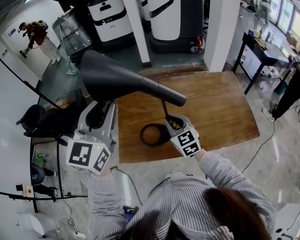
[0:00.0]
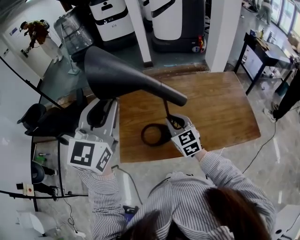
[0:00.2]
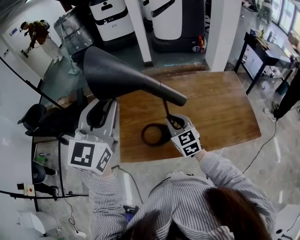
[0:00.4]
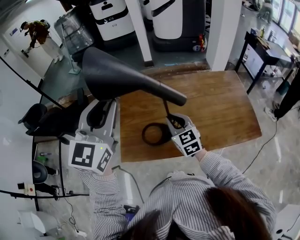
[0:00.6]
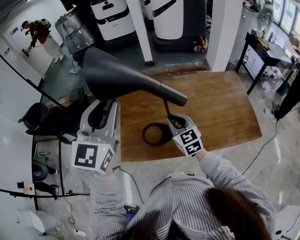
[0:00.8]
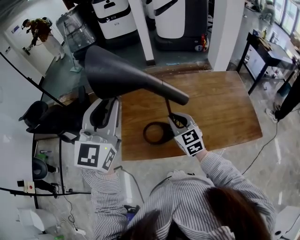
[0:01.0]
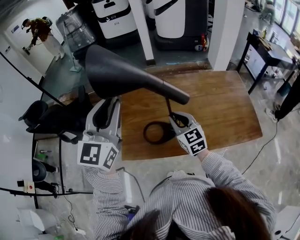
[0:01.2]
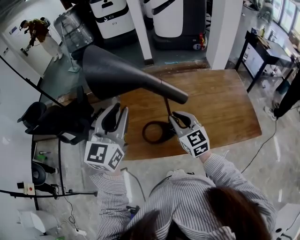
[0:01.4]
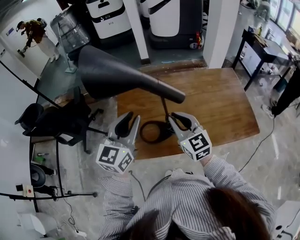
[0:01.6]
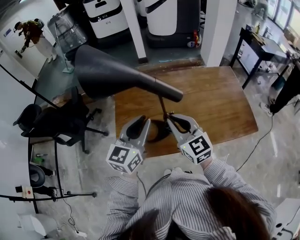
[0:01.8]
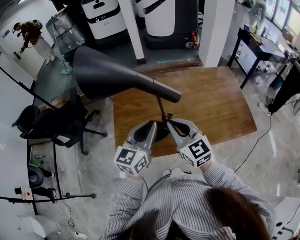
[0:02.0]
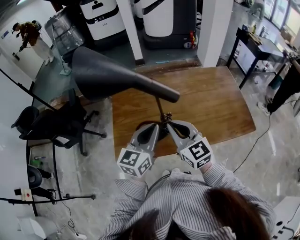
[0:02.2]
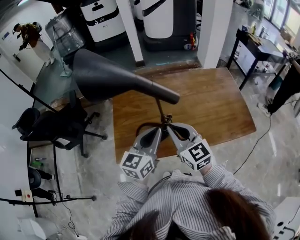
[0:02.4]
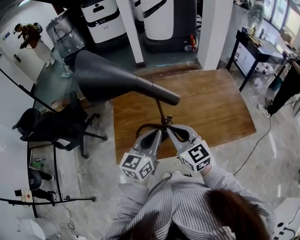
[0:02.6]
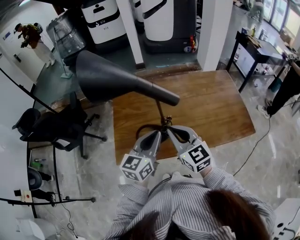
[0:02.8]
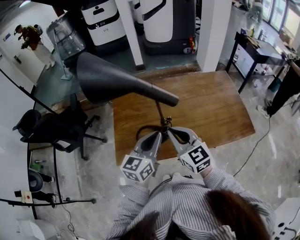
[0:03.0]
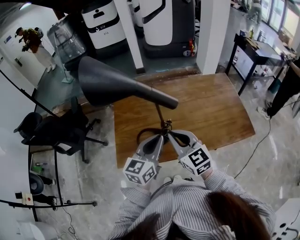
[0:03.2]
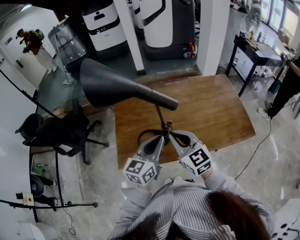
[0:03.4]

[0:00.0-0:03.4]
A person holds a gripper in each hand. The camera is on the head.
0:00.0 to 0:01.6: The left gripper is displaced downward by approximately 15 cm. Meanwhile the right gripper shifts by about 5 cm.
0:01.6 to 0:03.4: The left gripper shifts some 10 cm to the right and downward, and closes up, while the right gripper heads backward, covering roughly 5 cm.

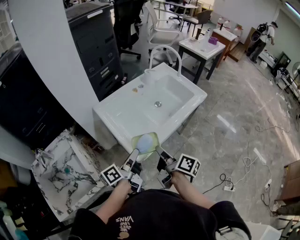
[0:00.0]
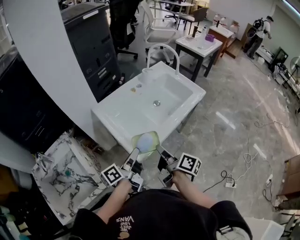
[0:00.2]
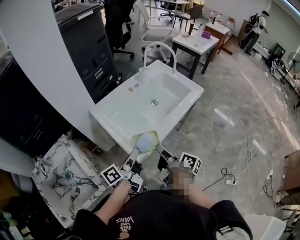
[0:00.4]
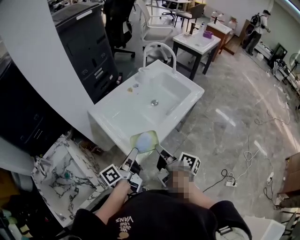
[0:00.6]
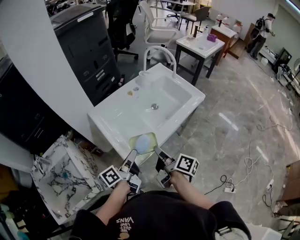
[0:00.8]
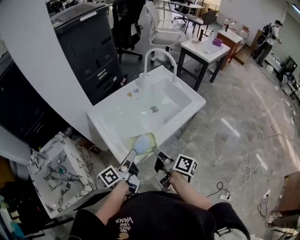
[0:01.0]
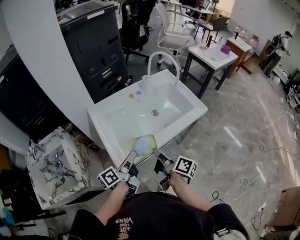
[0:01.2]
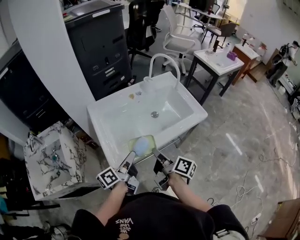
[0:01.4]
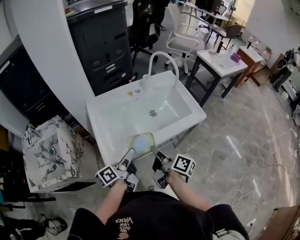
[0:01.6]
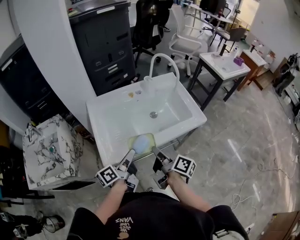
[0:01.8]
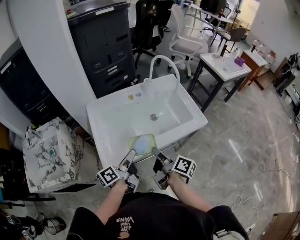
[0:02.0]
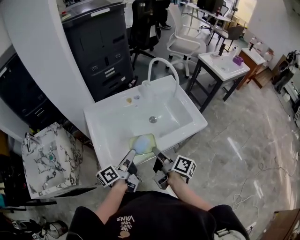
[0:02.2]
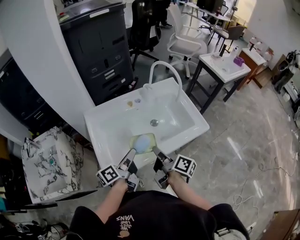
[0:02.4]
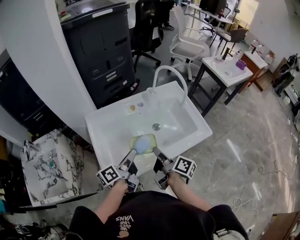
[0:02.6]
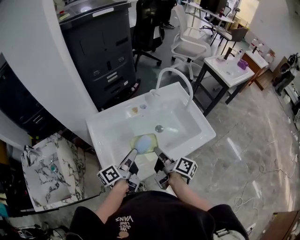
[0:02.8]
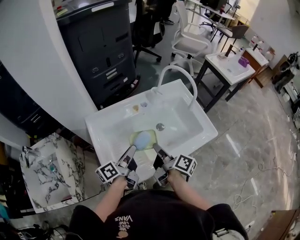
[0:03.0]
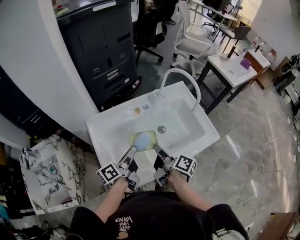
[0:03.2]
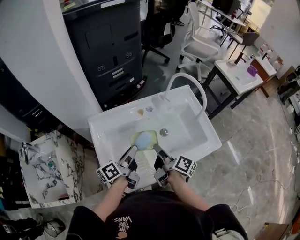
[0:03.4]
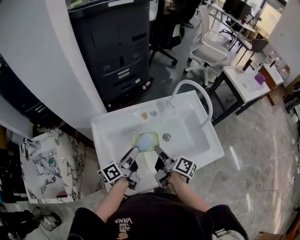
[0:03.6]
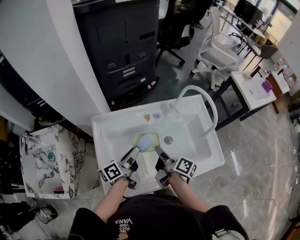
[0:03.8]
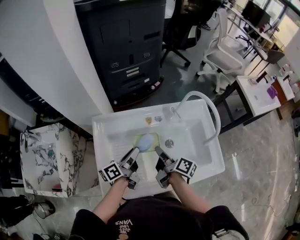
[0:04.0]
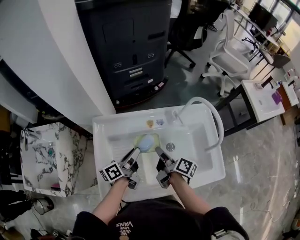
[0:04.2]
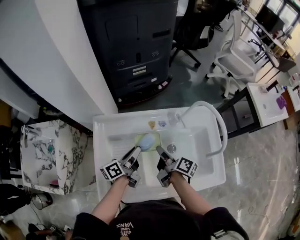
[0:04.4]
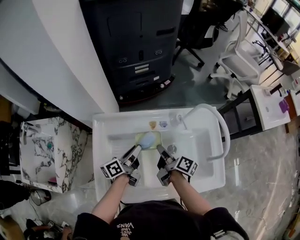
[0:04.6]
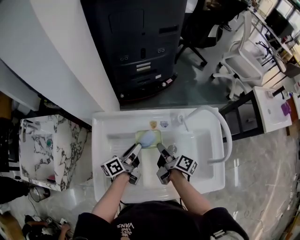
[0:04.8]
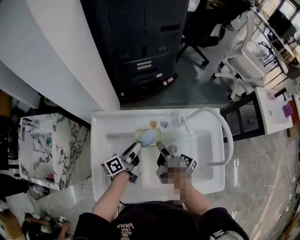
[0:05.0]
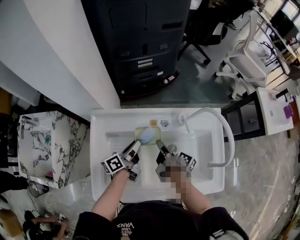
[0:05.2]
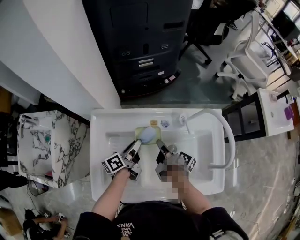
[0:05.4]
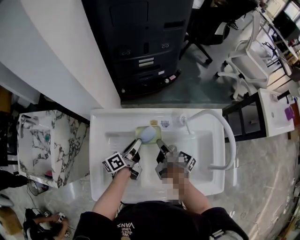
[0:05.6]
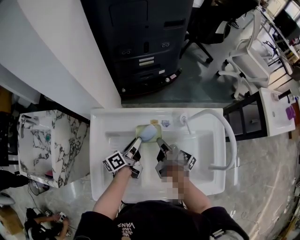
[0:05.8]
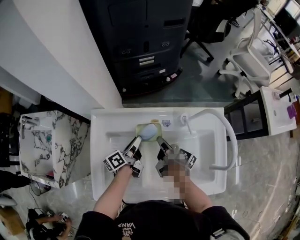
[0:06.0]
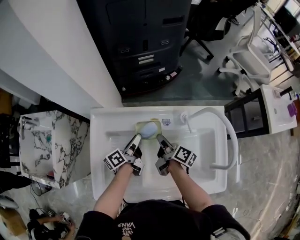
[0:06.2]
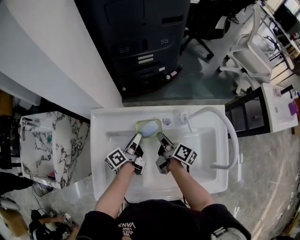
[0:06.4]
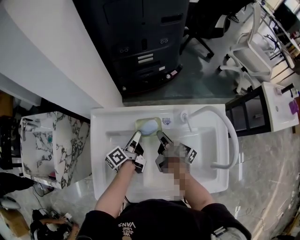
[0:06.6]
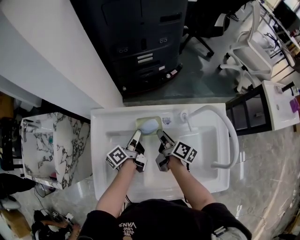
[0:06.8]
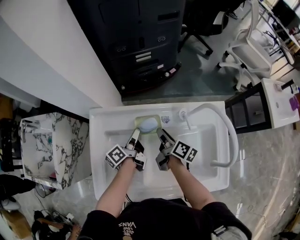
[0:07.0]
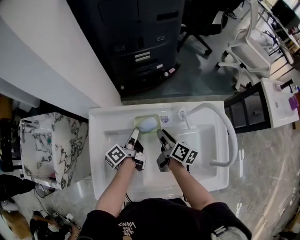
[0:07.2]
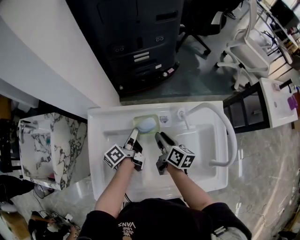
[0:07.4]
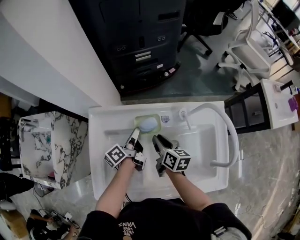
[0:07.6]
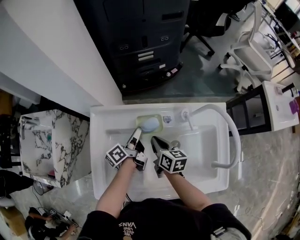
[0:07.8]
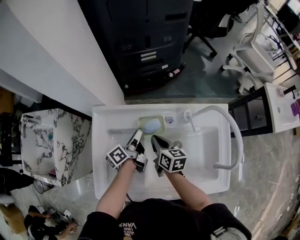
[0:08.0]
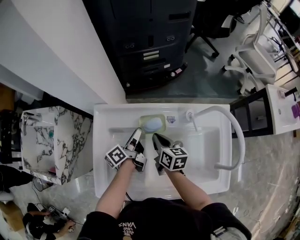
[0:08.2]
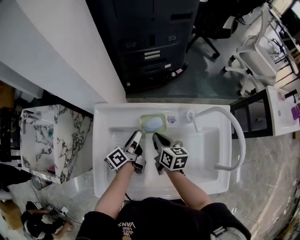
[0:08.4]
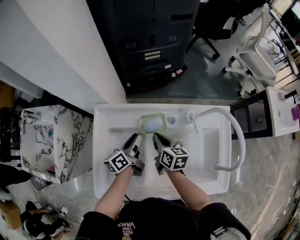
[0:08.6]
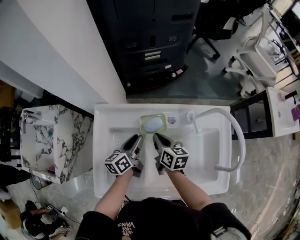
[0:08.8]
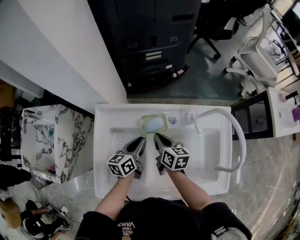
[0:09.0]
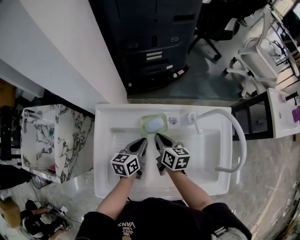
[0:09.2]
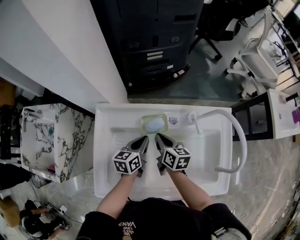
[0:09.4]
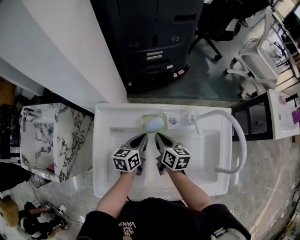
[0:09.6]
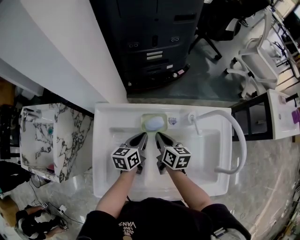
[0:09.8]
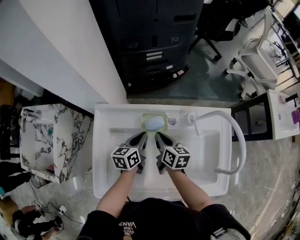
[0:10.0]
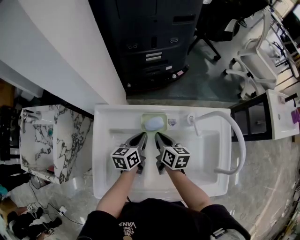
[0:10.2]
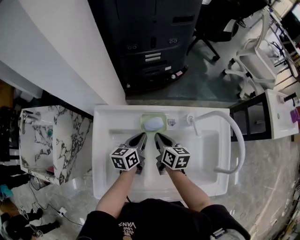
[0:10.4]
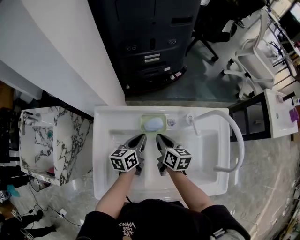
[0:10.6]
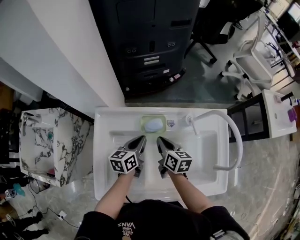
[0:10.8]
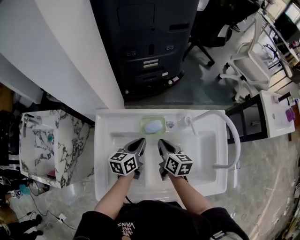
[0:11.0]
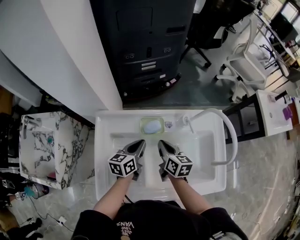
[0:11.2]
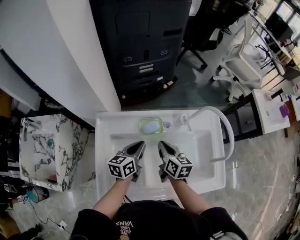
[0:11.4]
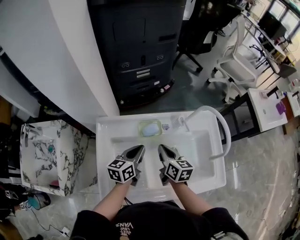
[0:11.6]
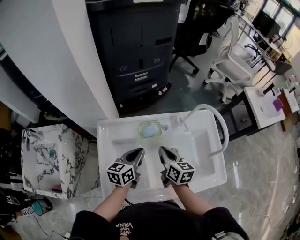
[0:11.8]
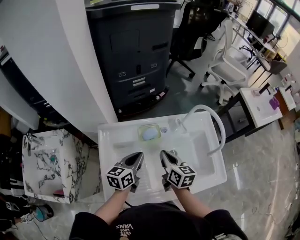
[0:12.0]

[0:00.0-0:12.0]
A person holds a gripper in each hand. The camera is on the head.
0:00.0 to 0:01.6: Both grippers move to the right and forward, some 15 cm.
0:01.6 to 0:03.0: The two grippers go approximately 15 cm forward.
0:03.0 to 0:04.4: Both grippers move forward and downward, about 15 cm. The right gripper rotates approximately 20 degrees.
0:04.4 to 0:06.0: The left gripper heads downward and forward, covering approximately 10 cm. Meanwhile the right gripper shifts about 10 cm forward and downward.
0:06.0 to 0:07.6: The right gripper swivels about 30 degrees.
0:07.6 to 0:09.0: The right gripper closes up. Meanwhile the left gripper turns by approximately 40 degrees.
0:09.0 to 0:10.4: The grippers stay close to where they were, moving slightly.
0:10.4 to 0:12.0: Both grippers move upward and backward, roughly 10 cm.

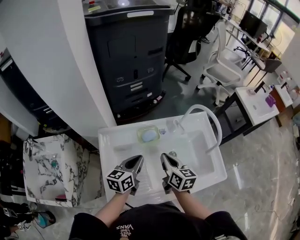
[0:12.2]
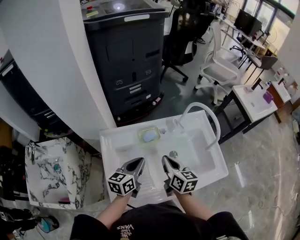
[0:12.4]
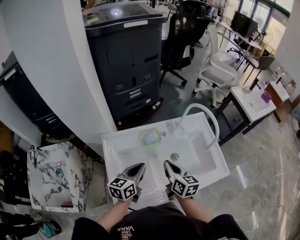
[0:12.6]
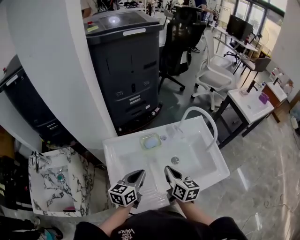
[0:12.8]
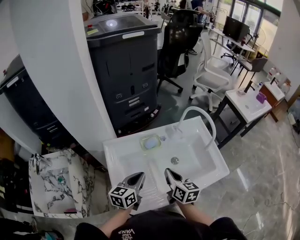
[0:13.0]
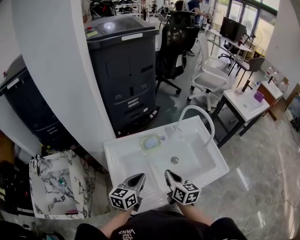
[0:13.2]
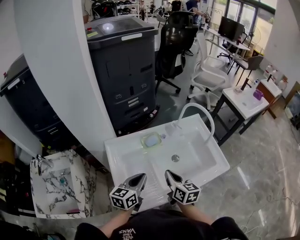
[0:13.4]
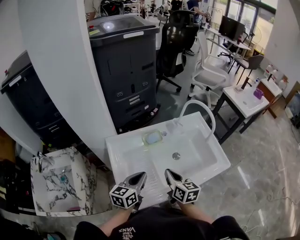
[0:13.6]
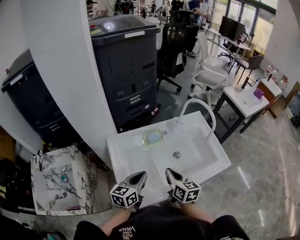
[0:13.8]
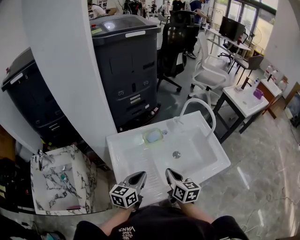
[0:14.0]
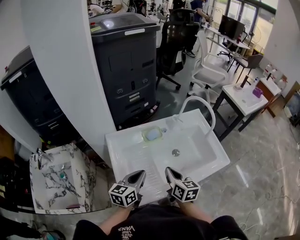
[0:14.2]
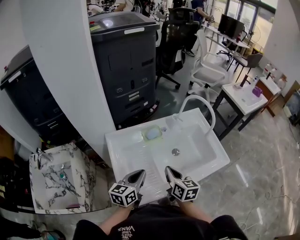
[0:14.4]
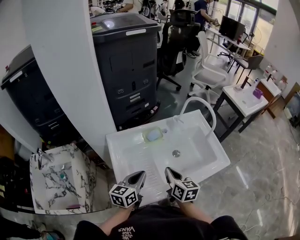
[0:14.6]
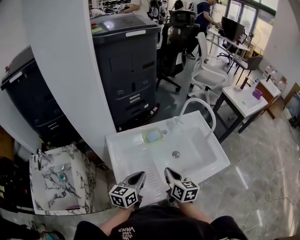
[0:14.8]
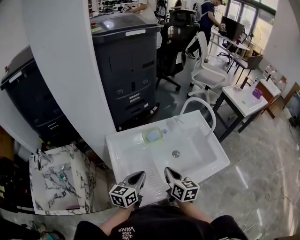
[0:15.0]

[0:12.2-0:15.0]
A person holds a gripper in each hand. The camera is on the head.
0:12.2 to 0:13.6: The grippers both shift backward by roughly 10 cm.
0:13.6 to 0:15.0: The grippers stay close to where they were, moving slightly.

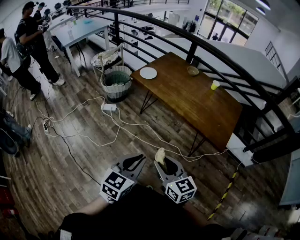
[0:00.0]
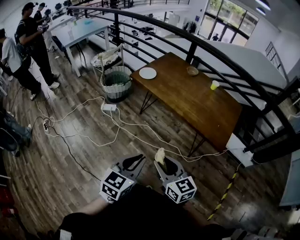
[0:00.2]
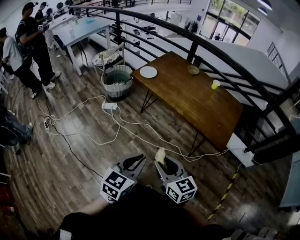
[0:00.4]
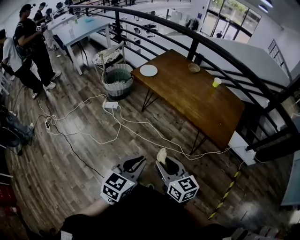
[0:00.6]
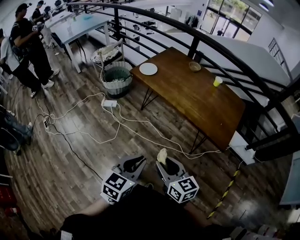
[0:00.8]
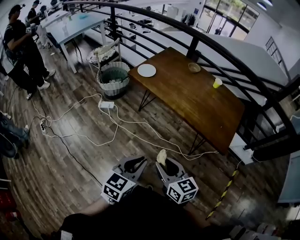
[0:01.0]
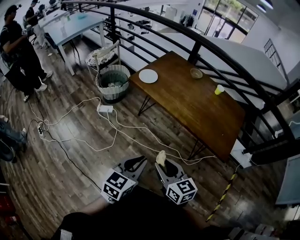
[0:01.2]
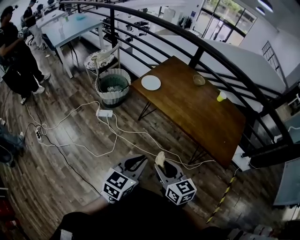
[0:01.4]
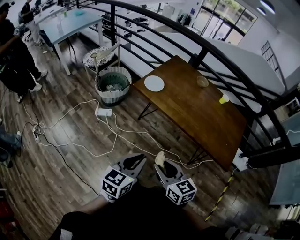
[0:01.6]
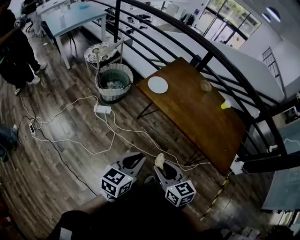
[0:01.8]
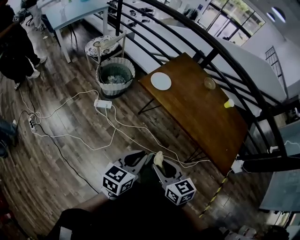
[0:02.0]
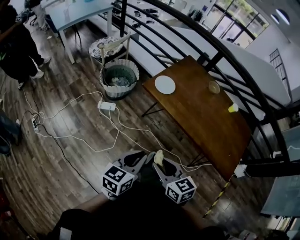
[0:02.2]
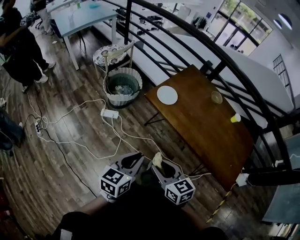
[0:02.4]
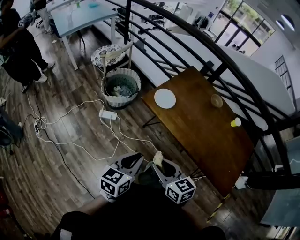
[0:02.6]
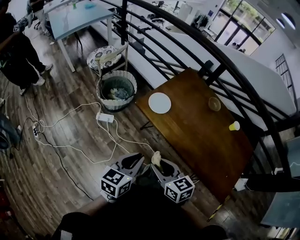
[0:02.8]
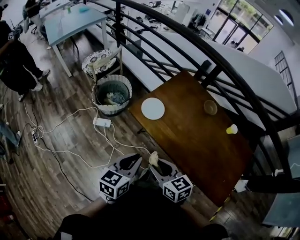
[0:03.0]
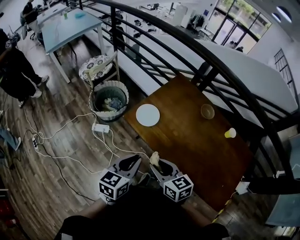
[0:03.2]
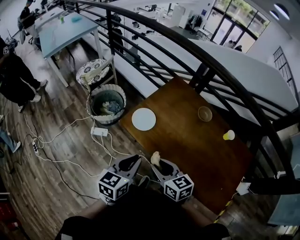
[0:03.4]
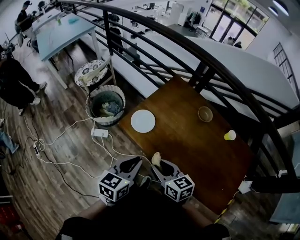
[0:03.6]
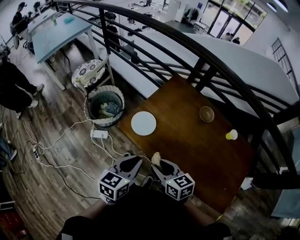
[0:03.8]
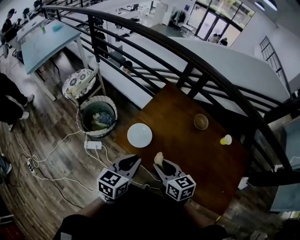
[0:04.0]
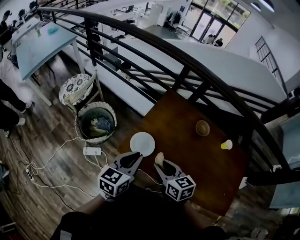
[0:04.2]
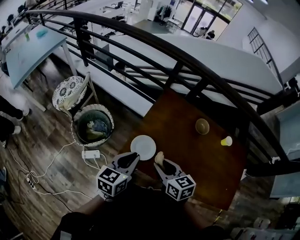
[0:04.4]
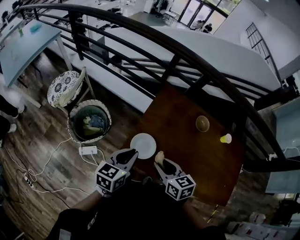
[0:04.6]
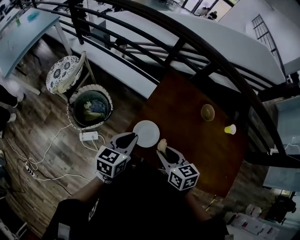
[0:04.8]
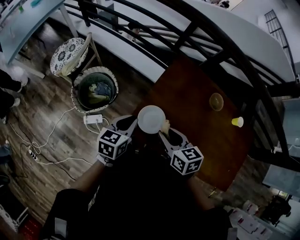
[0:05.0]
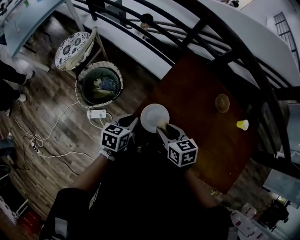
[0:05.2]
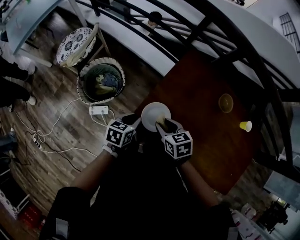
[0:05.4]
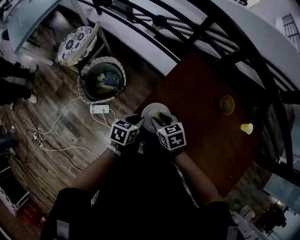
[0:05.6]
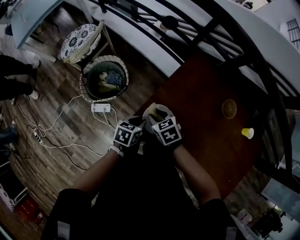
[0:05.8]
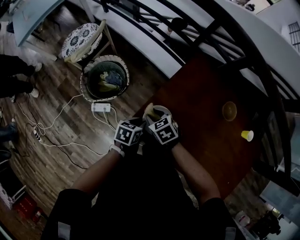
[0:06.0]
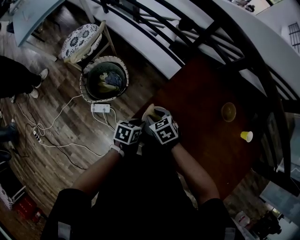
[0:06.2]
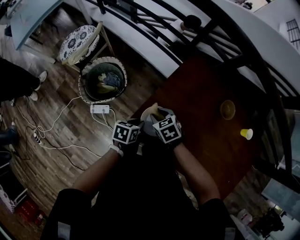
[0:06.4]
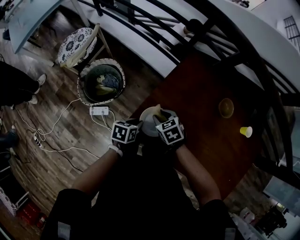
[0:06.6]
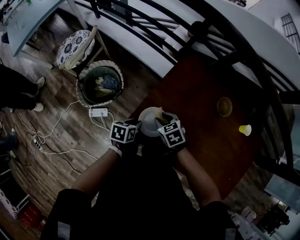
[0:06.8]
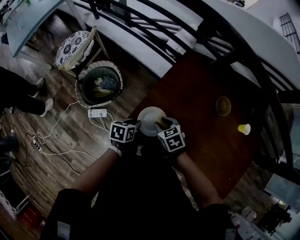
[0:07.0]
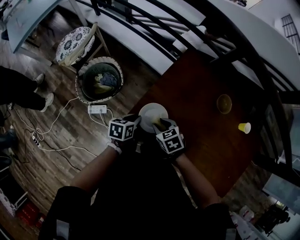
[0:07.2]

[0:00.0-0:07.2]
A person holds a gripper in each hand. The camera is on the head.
0:00.0 to 0:01.4: Both grippers move forward and to the left, some 15 cm.
0:01.4 to 0:02.8: The grippers both shift forward by roughly 25 cm.
0:02.8 to 0:04.4: The two grippers go approximately 30 cm forward. The right gripper rotates about 20 degrees.
0:04.4 to 0:05.8: The right gripper moves downward, forward and to the left, about 25 cm, and swivels about 40 degrees, while the left gripper moves downward, some 20 cm, and turns by about 30 degrees.
0:05.8 to 0:07.2: The right gripper shifts about 10 cm to the right and backward.
